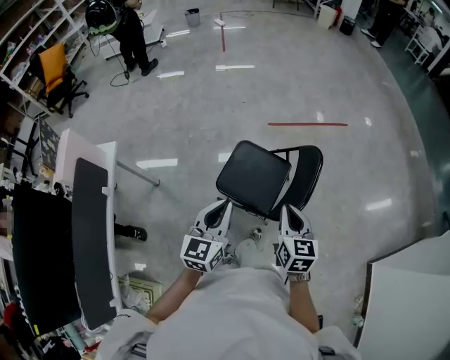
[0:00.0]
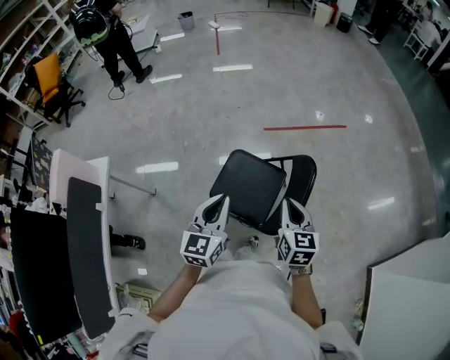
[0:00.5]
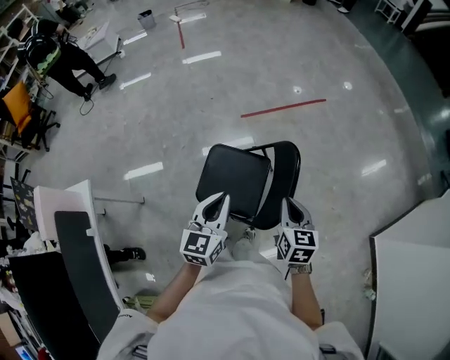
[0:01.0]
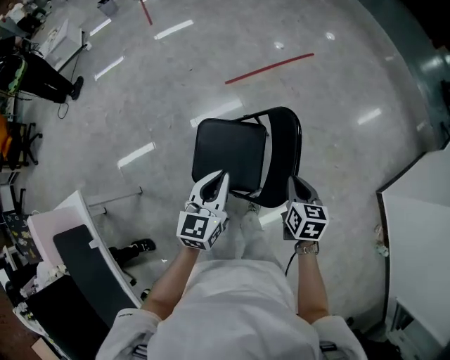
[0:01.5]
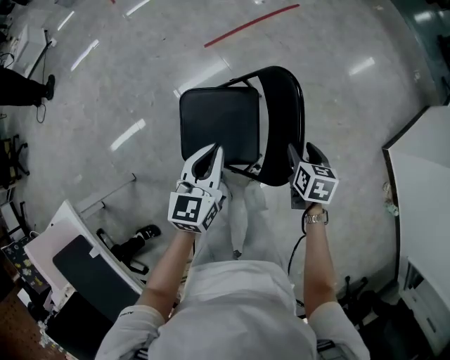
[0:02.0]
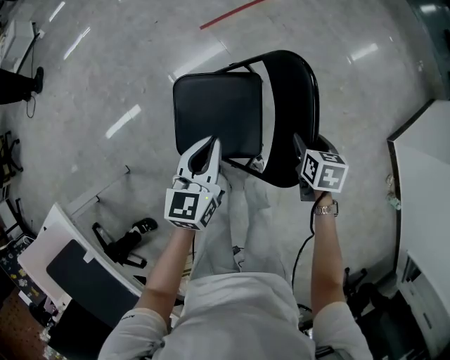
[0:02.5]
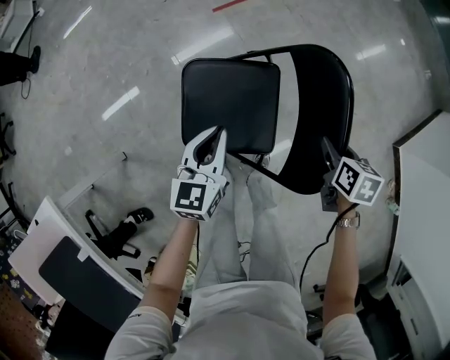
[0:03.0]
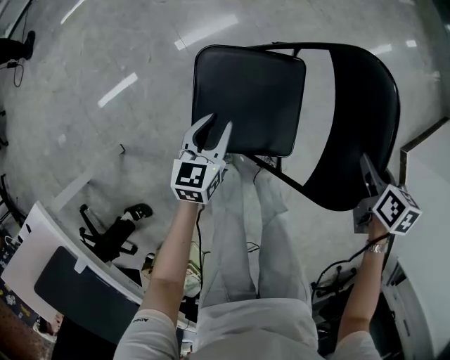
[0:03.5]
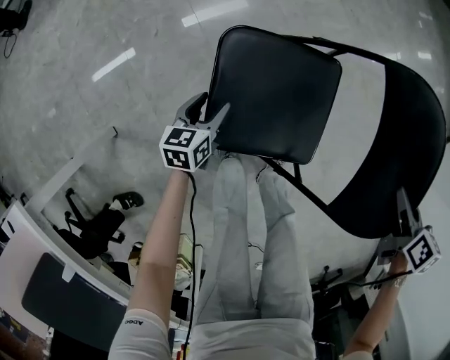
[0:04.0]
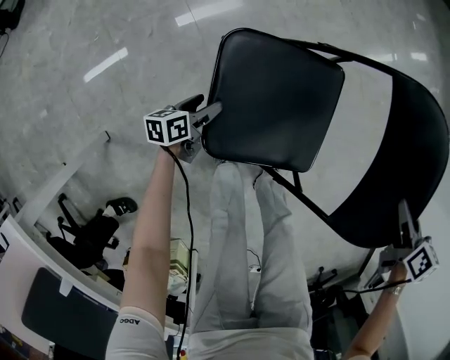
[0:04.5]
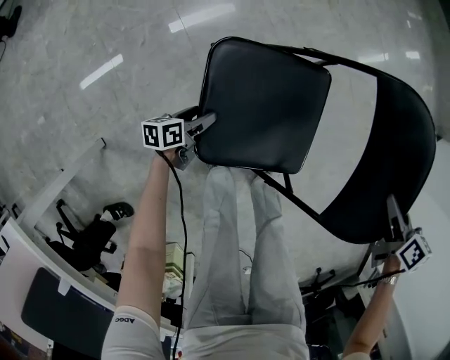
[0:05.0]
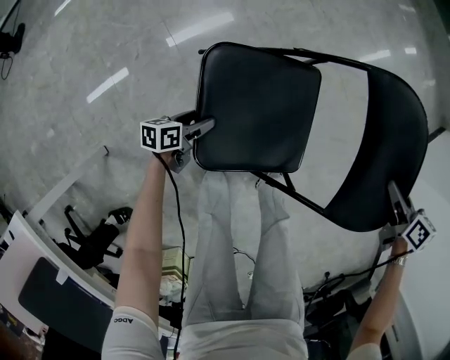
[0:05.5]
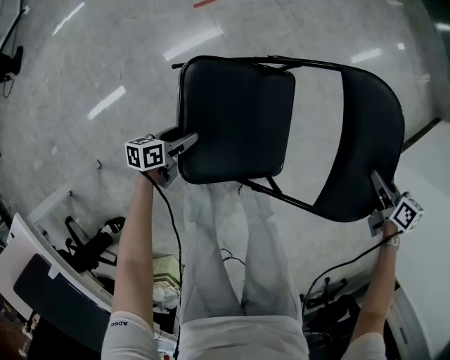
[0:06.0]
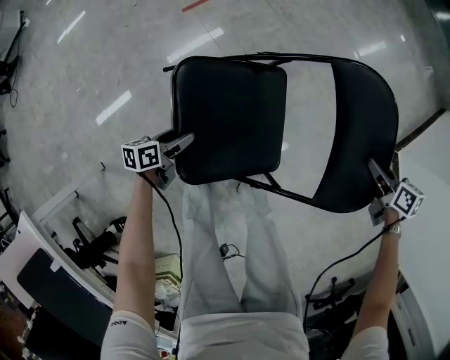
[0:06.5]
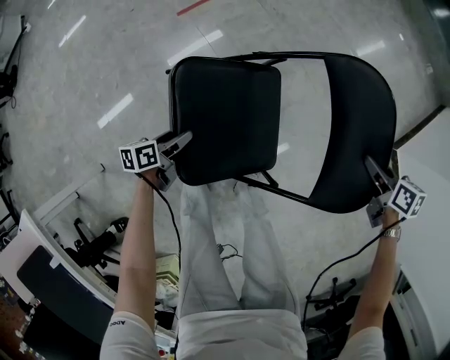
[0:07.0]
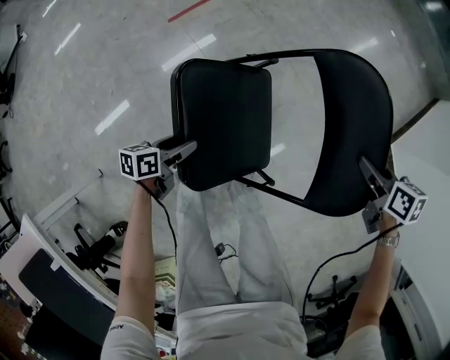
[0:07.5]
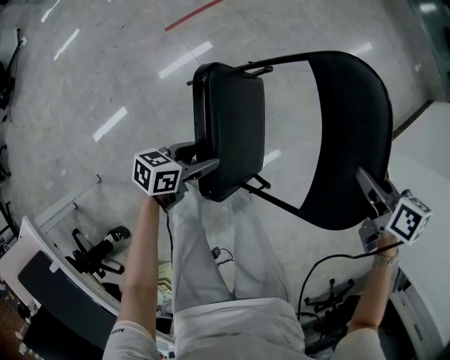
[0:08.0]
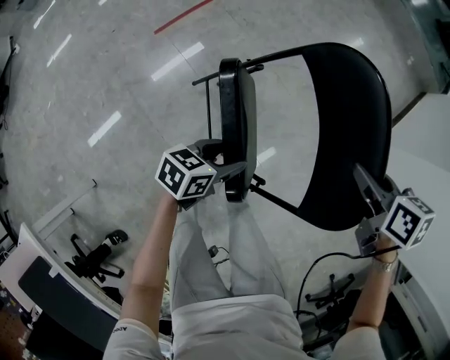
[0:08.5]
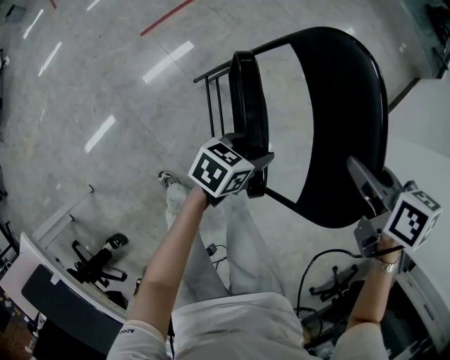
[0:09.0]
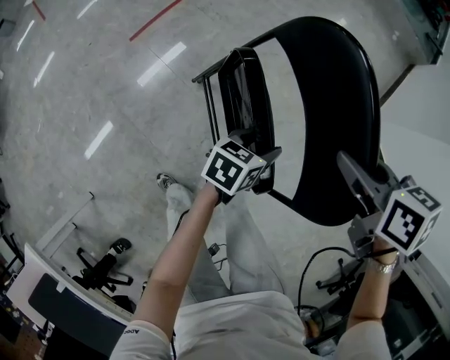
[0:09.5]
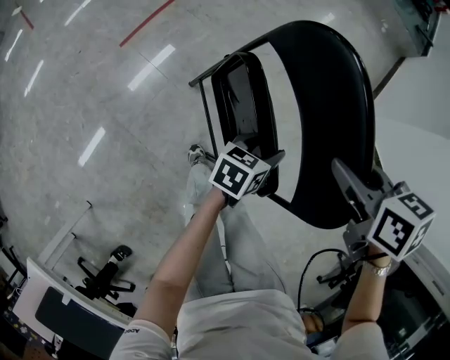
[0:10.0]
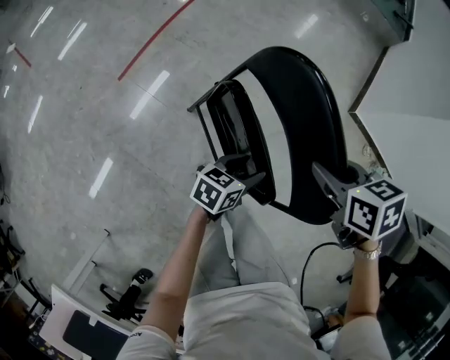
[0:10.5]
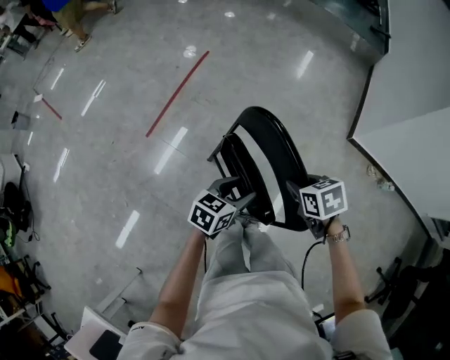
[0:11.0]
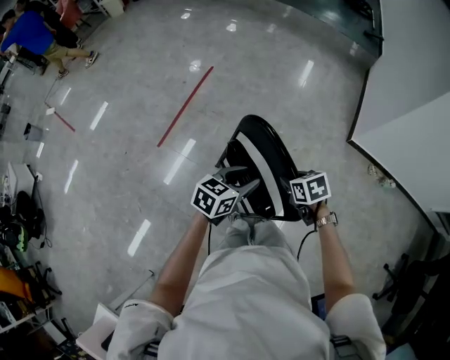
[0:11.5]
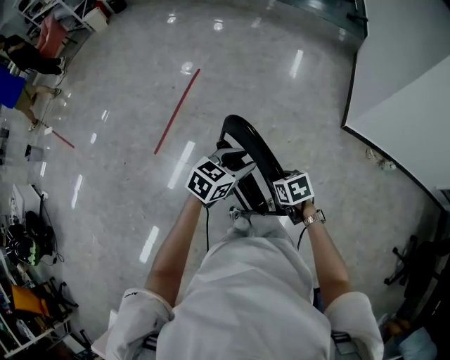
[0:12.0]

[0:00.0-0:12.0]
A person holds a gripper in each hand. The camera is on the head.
0:00.0 to 0:02.0: The right gripper moves downward, about 25 cm, changes its angle by about 40 degrees, and opens its fingers. The left gripper ends up about 30 cm from where it was, and turns by roughly 30 degrees.
0:02.0 to 0:04.0: The left gripper travels downward and to the left by about 50 cm, changes its angle by about 20 degrees, and opens, while the right gripper travels downward by some 10 cm, and closes up.
0:04.0 to 0:06.0: The left gripper heads to the right, covering some 15 cm, and swivels some 30 degrees, while the right gripper shifts roughly 25 cm to the right.
0:06.0 to 0:08.0: The left gripper travels to the right and upward by roughly 30 cm, and turns by about 20 degrees. The right gripper is displaced upward by roughly 15 cm.
0:08.0 to 0:10.0: The right gripper shifts some 5 cm upward. The left gripper heads to the right and forward, covering approximately 25 cm.
0:10.0 to 0:12.0: The left gripper moves upward, approximately 30 cm, and changes its angle by approximately 40 degrees.

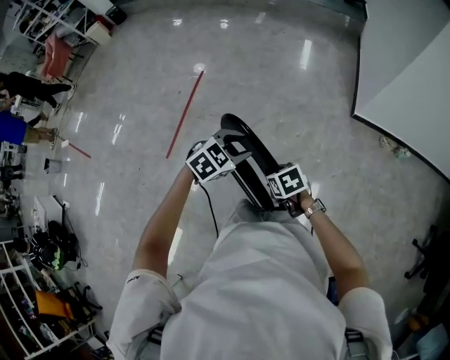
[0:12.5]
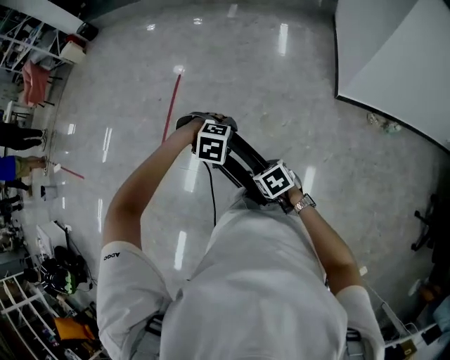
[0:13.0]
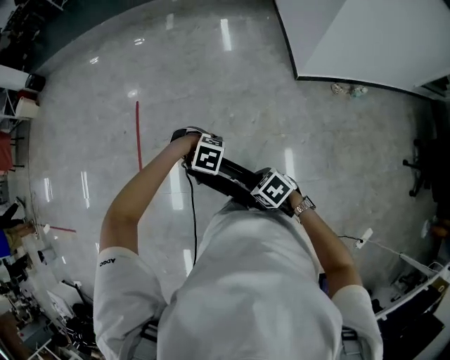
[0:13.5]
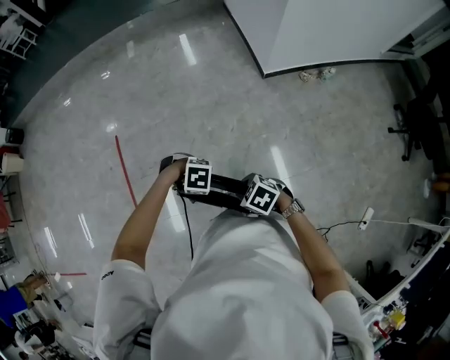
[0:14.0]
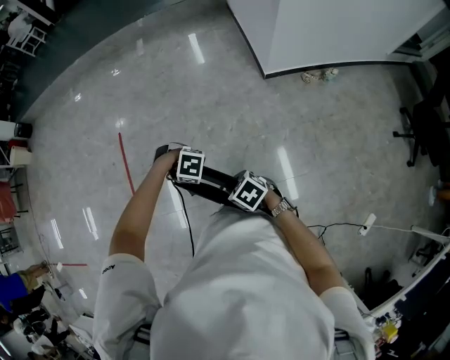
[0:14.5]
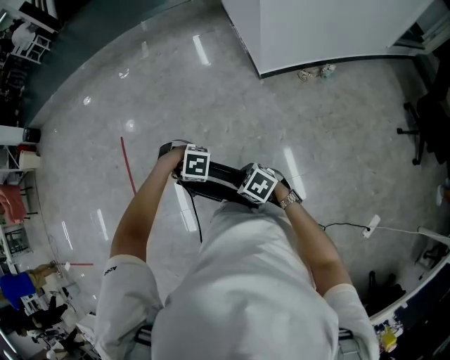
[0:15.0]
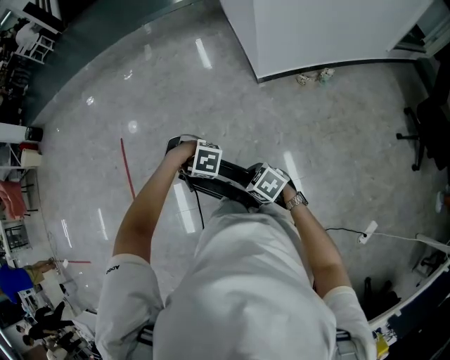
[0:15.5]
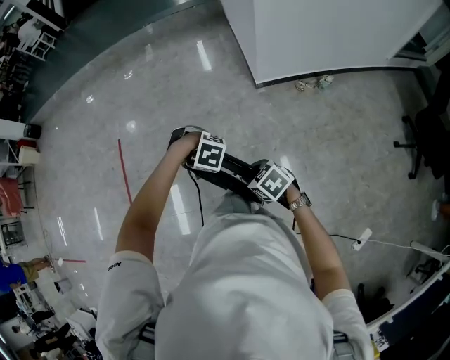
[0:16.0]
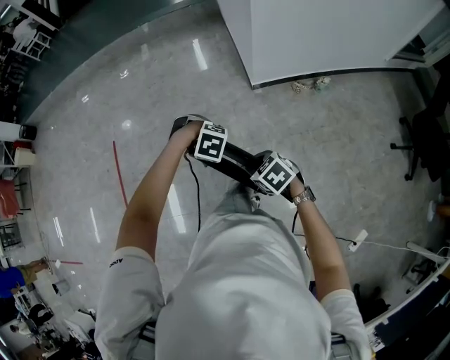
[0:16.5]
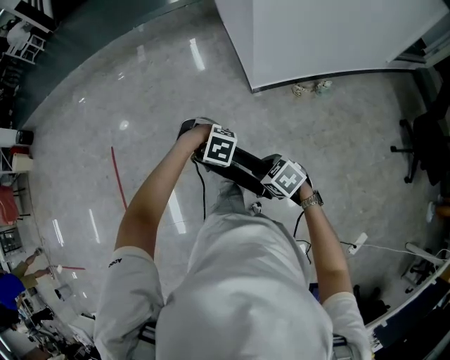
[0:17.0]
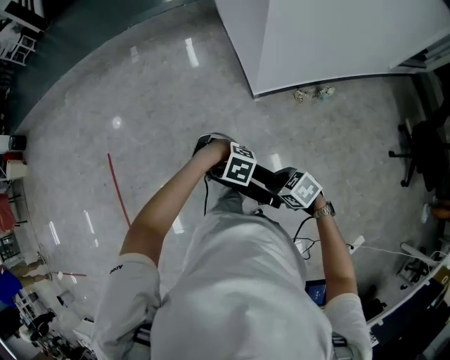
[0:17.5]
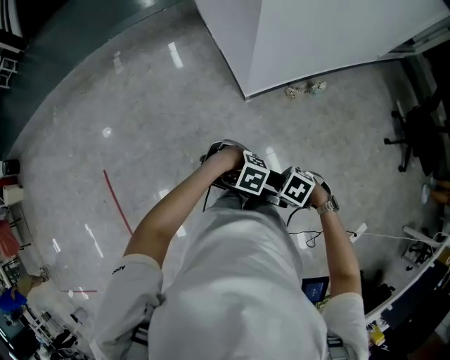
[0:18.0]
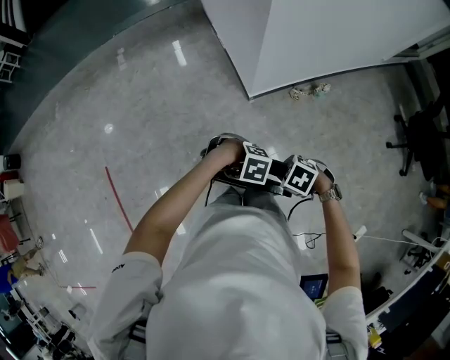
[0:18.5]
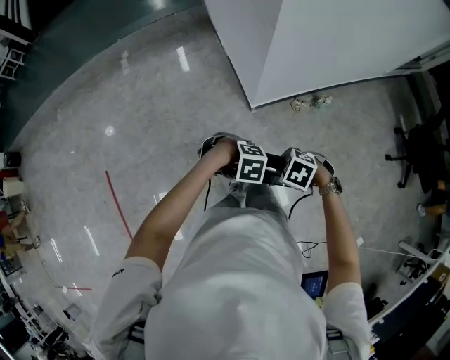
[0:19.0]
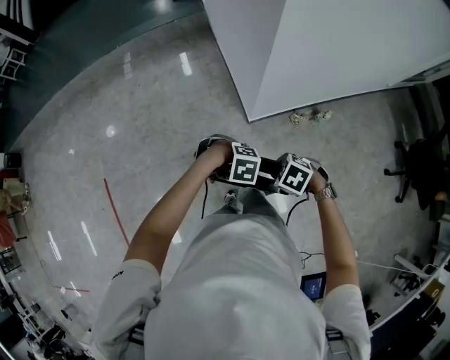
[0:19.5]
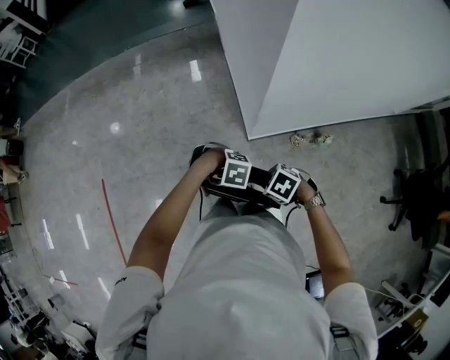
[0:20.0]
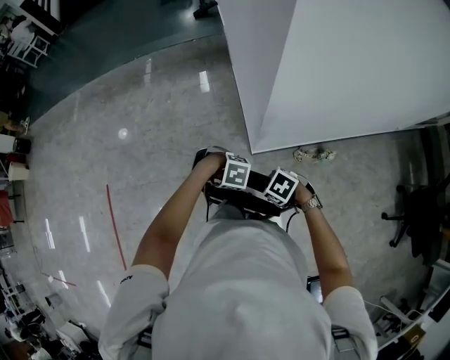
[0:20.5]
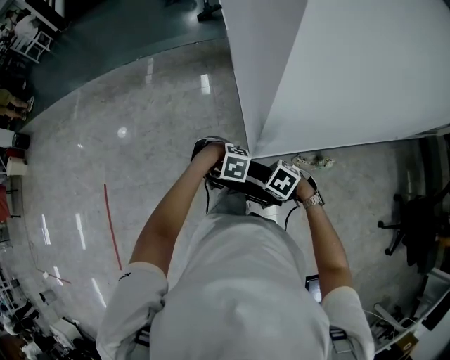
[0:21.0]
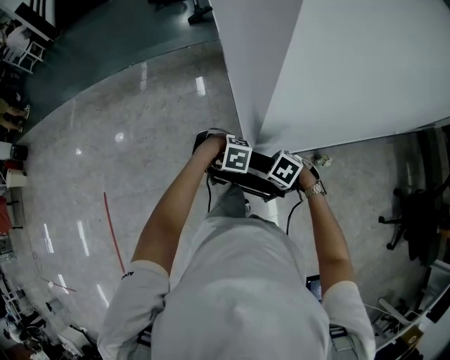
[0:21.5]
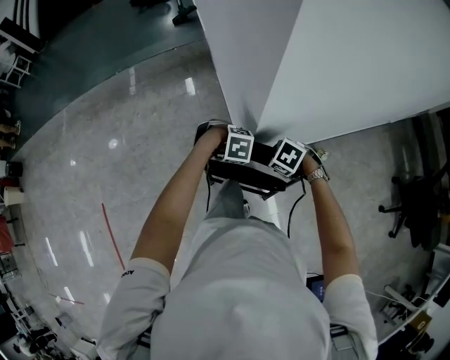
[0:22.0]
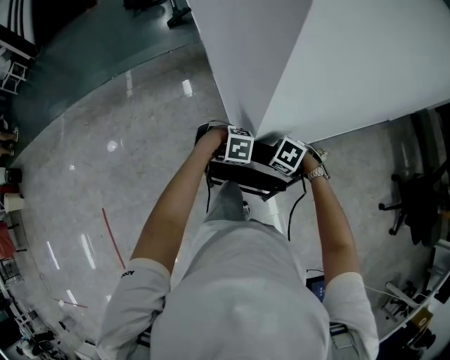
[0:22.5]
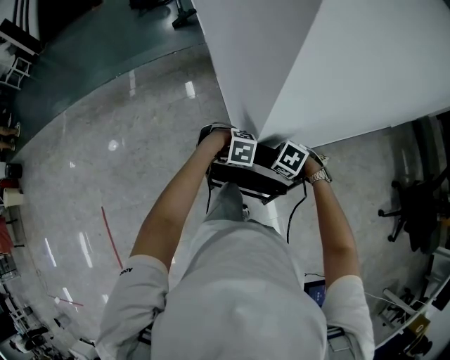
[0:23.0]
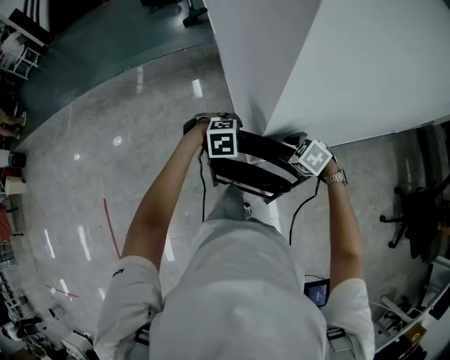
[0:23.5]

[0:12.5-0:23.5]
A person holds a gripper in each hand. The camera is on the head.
0:12.5 to 0:14.5: The left gripper is displaced downward by roughly 15 cm, and changes its angle by about 90 degrees; the right gripper ends up roughly 5 cm from where it was.
0:14.5 to 0:16.0: The left gripper moves some 25 cm, while the right gripper ends up approximately 25 cm from where it was.
0:16.0 to 0:18.0: The right gripper moves some 20 cm, and swivels roughly 20 degrees; the left gripper ends up about 20 cm from where it was.
0:18.0 to 0:20.0: The right gripper ends up approximately 30 cm from where it was. The left gripper changes place by about 25 cm.
0:20.0 to 0:21.5: The left gripper changes place by approximately 15 cm, while the right gripper ends up roughly 15 cm from where it was.
0:21.5 to 0:23.5: The right gripper changes place by roughly 10 cm, and opens up; the left gripper changes place by about 10 cm, rotates about 20 degrees, and opens.

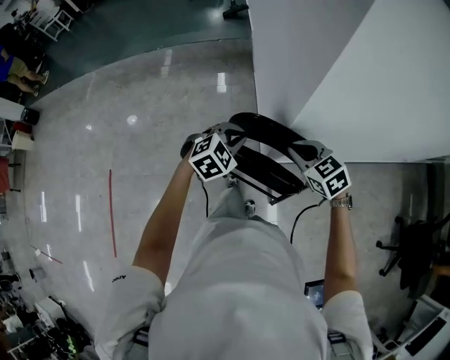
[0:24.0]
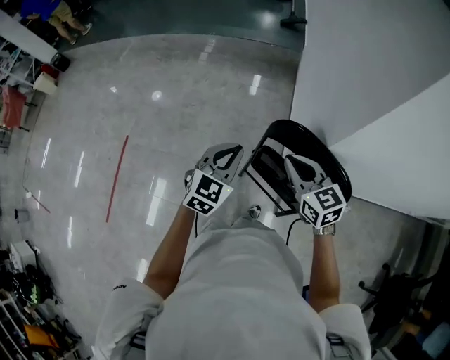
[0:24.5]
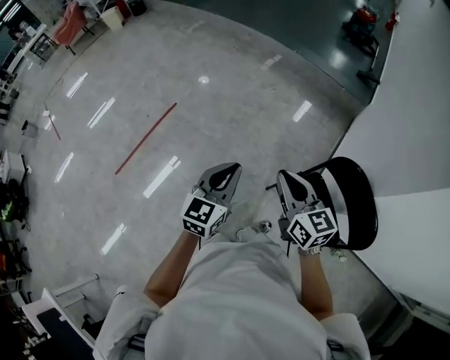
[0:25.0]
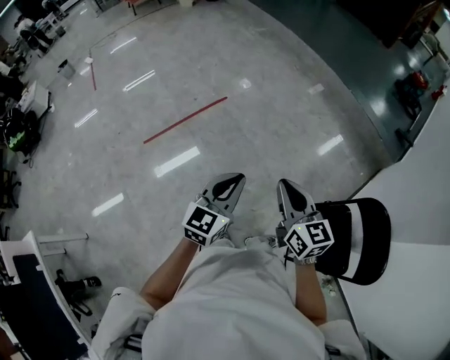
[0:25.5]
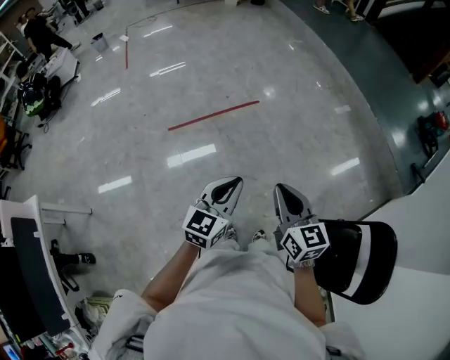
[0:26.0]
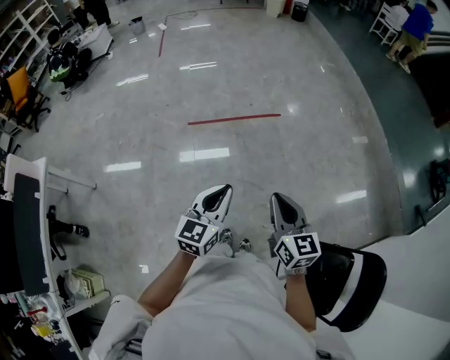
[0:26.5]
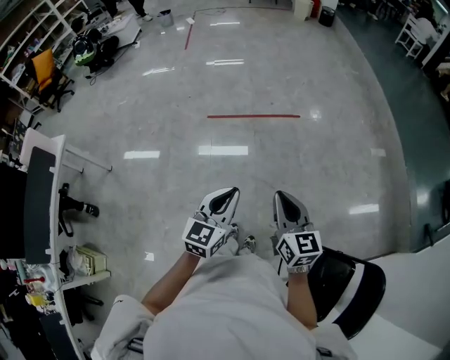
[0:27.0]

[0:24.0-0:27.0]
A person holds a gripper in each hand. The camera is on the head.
0:24.0 to 0:25.5: The two grippers travel together, some 60 cm. The right gripper rotates about 40 degrees. The left gripper tips its fingers upward by some 30 degrees.
0:25.5 to 0:27.0: The right gripper changes place by approximately 15 cm, and turns by roughly 30 degrees, while the left gripper ends up roughly 15 cm from where it was, and changes its angle by approximately 40 degrees.
